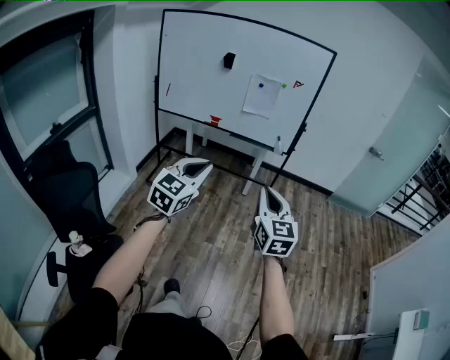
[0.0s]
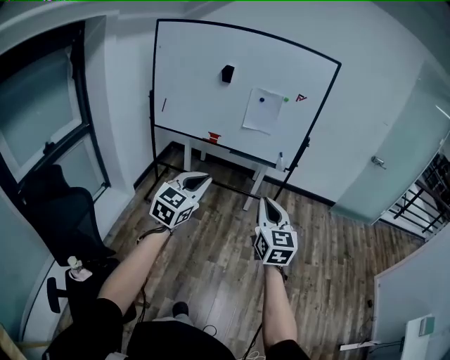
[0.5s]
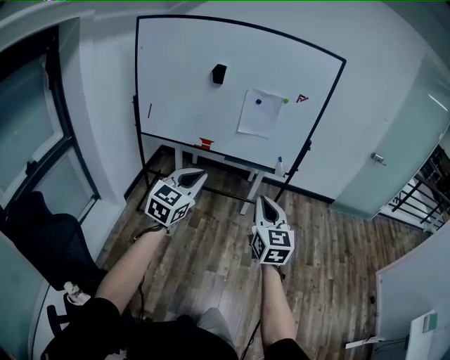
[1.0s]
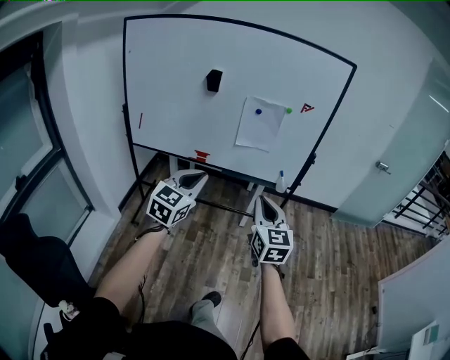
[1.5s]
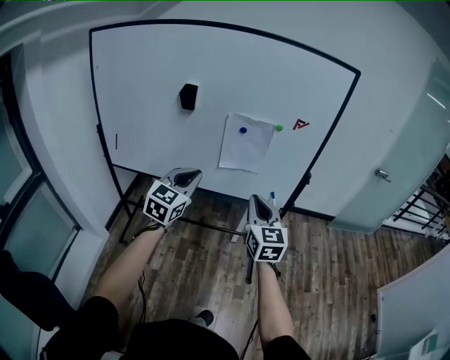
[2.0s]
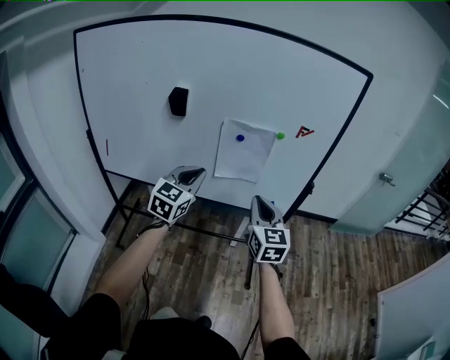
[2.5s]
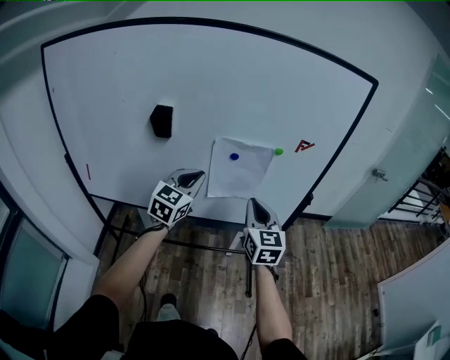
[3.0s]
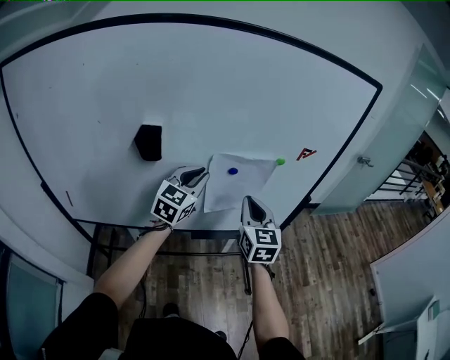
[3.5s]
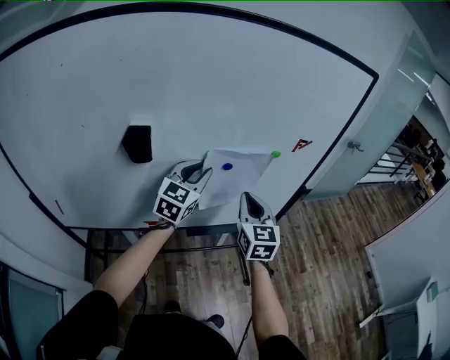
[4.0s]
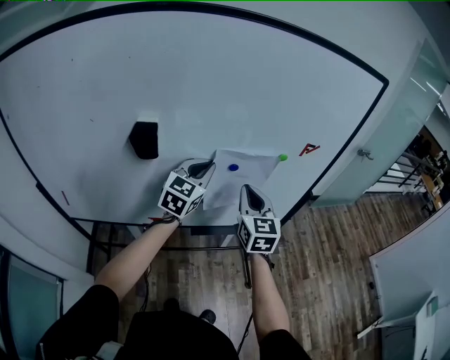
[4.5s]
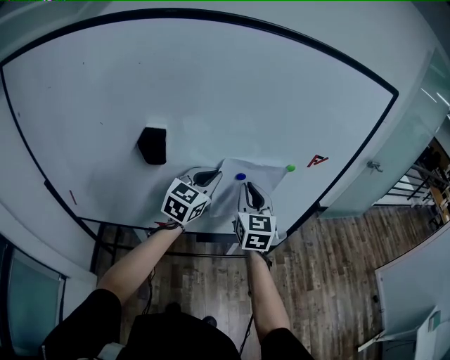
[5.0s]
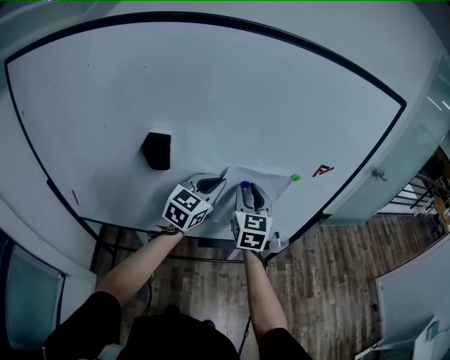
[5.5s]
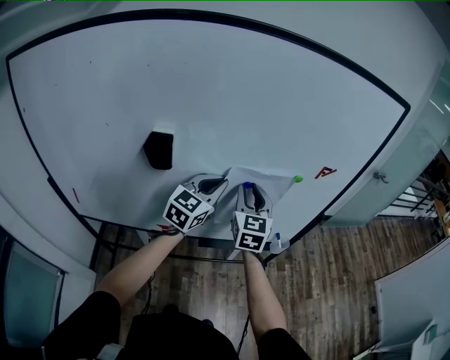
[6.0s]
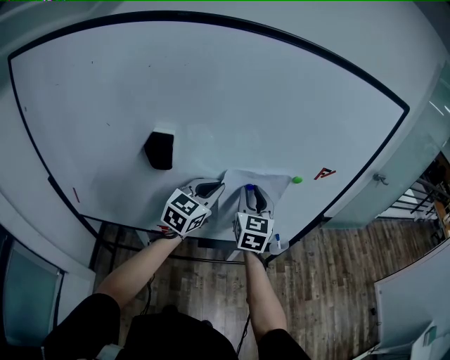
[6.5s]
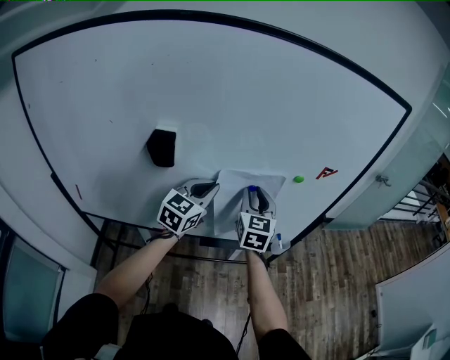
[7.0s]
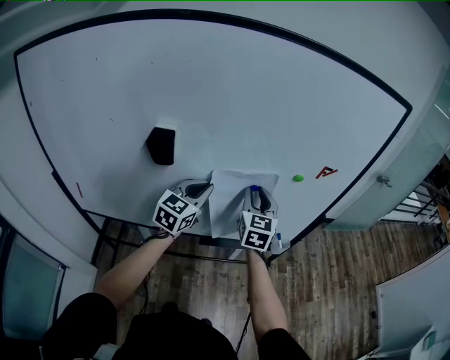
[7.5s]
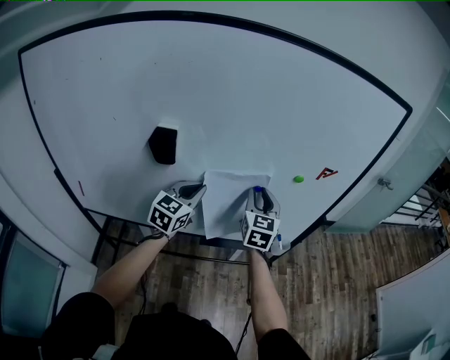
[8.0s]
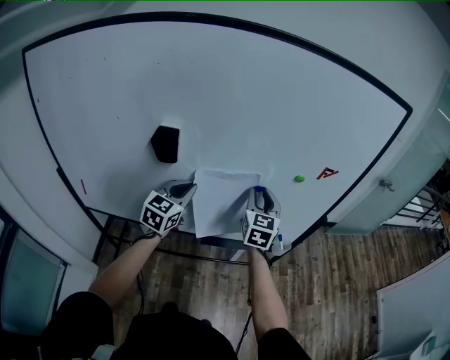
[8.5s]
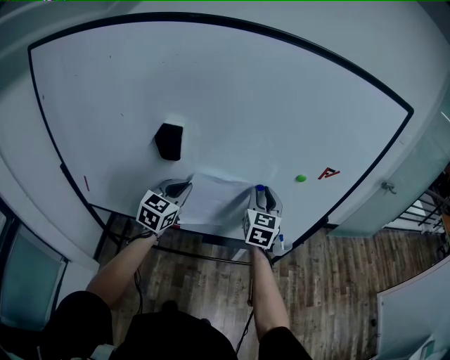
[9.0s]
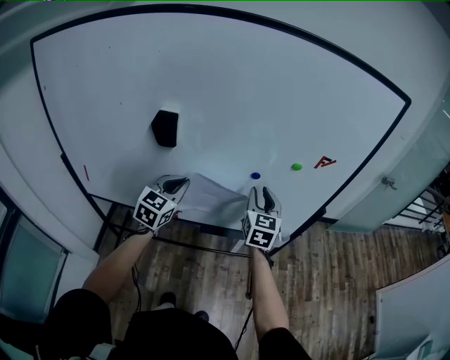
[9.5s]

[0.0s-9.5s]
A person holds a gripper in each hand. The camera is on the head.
0.0s to 2.0s: The pair of grippers is taken forward, roughly 60 cm.
2.0s to 4.0s: The grippers both shift forward by approximately 30 cm. The right gripper rotates some 20 degrees.
4.0s to 5.5s: The right gripper moves forward and to the left, roughly 10 cm, and opens up.
5.5s to 7.5s: The left gripper moves roughly 5 cm.
7.5s to 9.5s: The left gripper is displaced backward and to the left by roughly 10 cm.

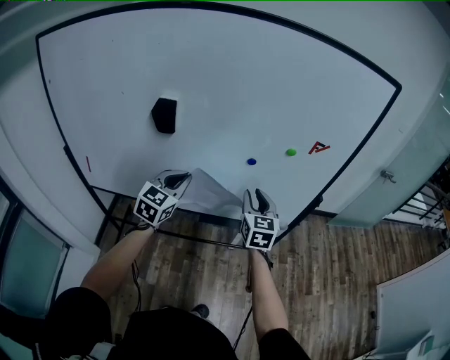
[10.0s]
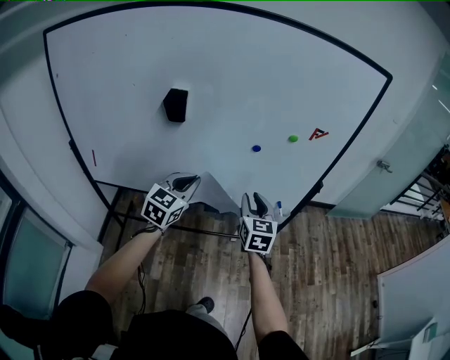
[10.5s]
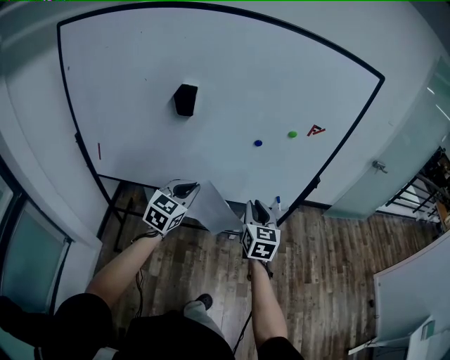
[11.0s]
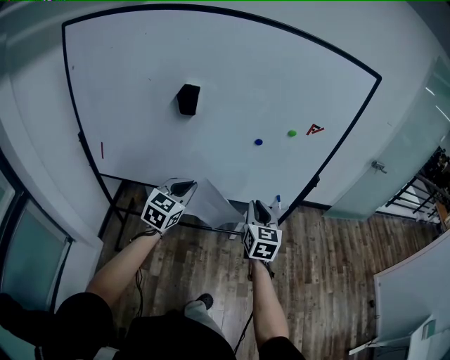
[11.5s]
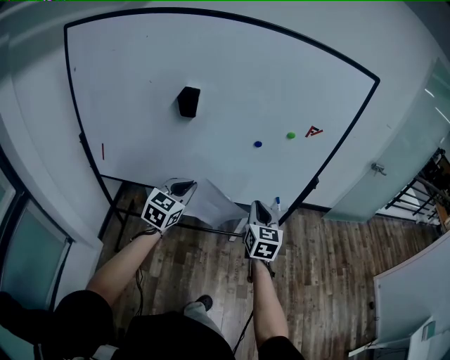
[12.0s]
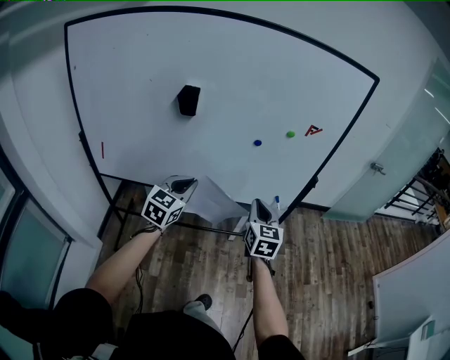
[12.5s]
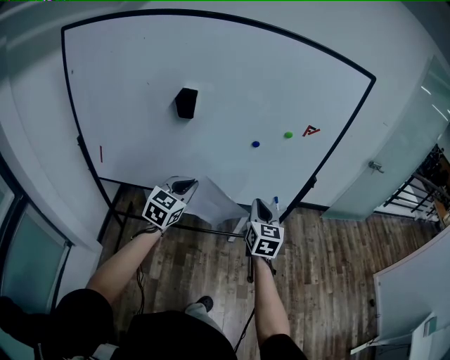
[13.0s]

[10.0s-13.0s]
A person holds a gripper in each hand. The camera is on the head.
10.0s to 11.5s: Both grippers travel together backward, roughly 15 cm.
11.5s to 13.0s: There are only small adjustments of the grippers.

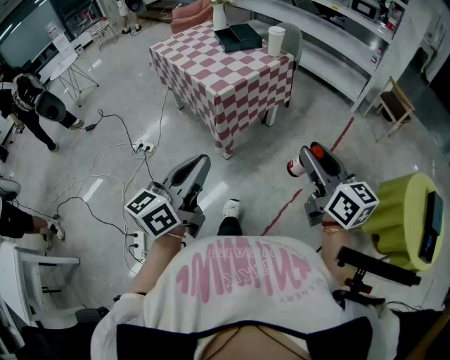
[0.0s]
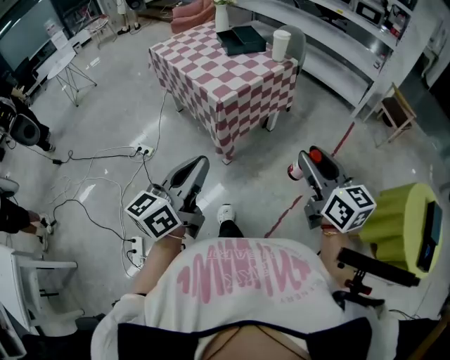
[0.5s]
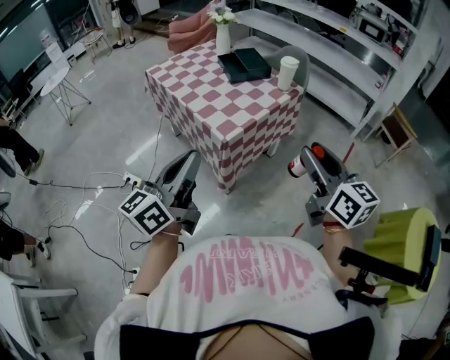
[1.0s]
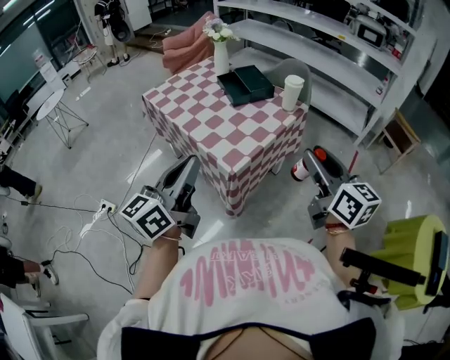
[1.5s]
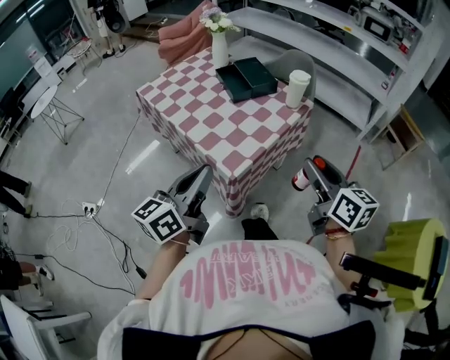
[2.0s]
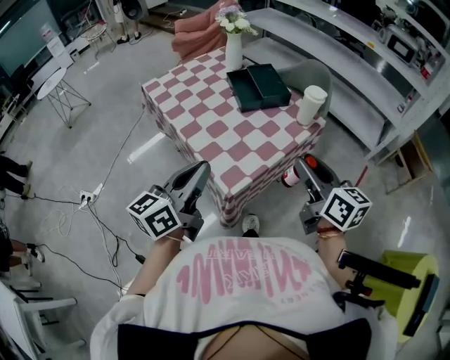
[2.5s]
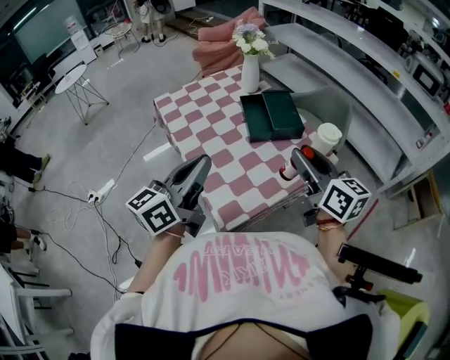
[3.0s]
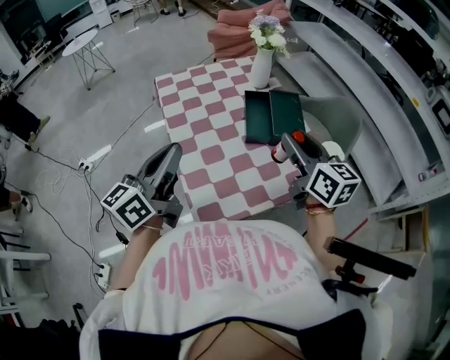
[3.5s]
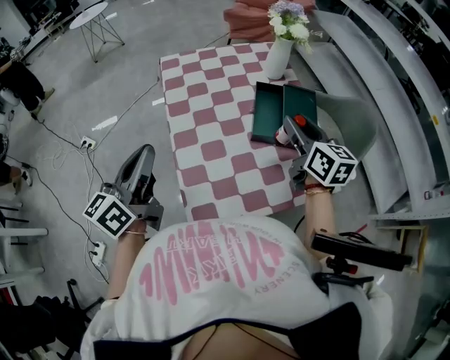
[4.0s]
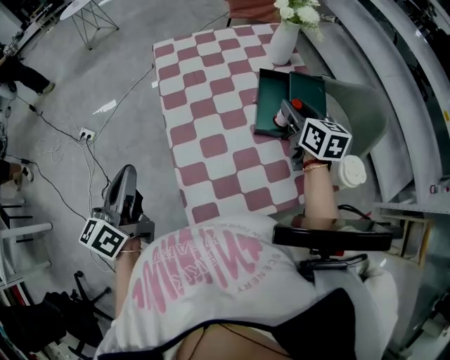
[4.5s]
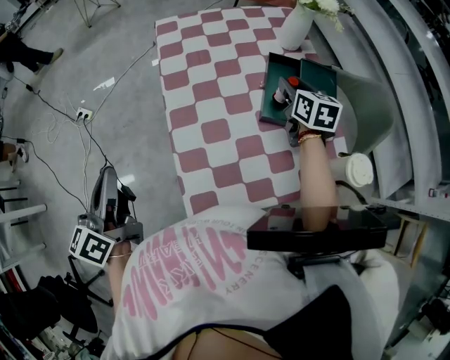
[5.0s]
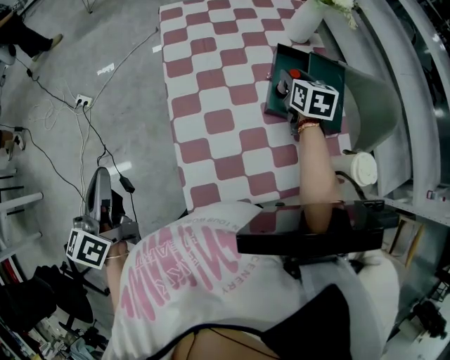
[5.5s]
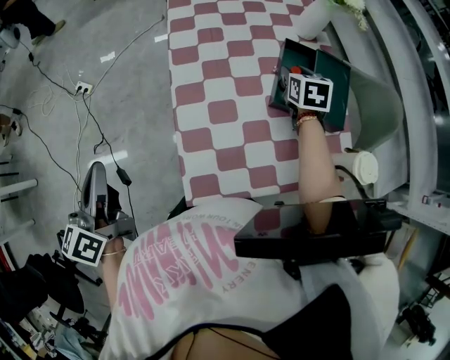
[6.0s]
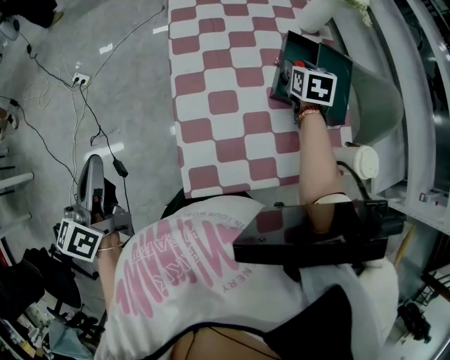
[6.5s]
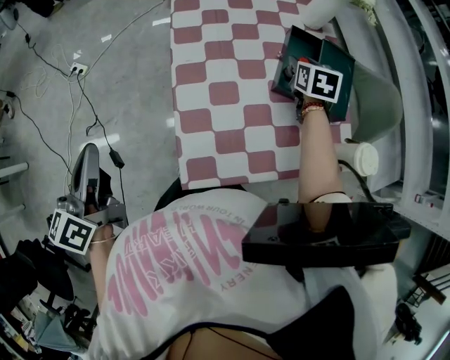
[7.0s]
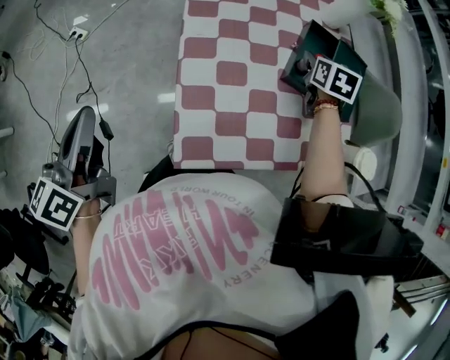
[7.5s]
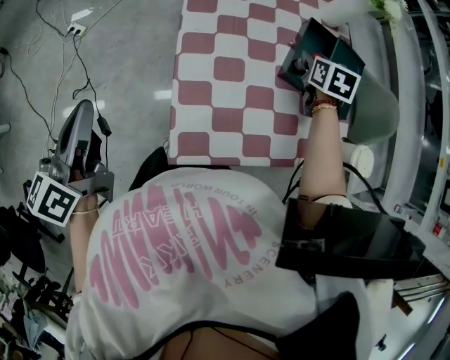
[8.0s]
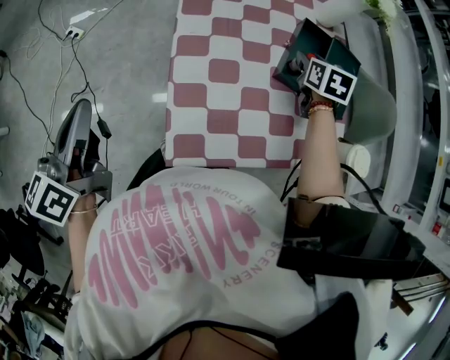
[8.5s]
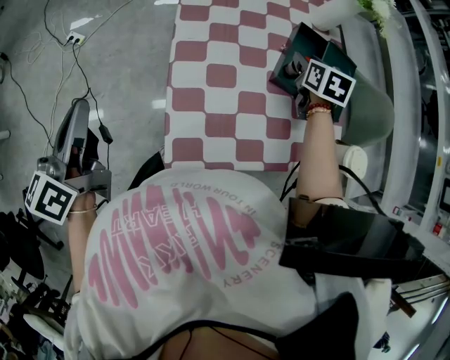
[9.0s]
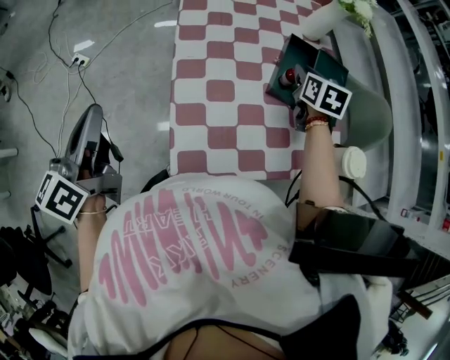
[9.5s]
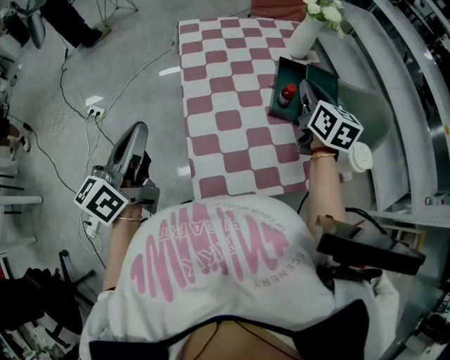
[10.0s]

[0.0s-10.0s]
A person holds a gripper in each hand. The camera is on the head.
0.0s to 2.0s: The two grippers go some 40 cm forward.
2.0s to 4.0s: The left gripper ends up about 25 cm from where it was, and turns by some 40 degrees, while the right gripper moves about 50 cm, and turns by approximately 30 degrees.
4.0s to 6.0s: The right gripper heads downward and forward, covering some 25 cm, and swivels approximately 30 degrees, while the left gripper moves to the left, downward and backward, some 15 cm, and swivels approximately 30 degrees.
6.0s to 8.0s: The grippers make only small movements.
8.0s to 10.0s: The right gripper is displaced upward and backward by roughly 15 cm, changes its angle by some 30 degrees, and closes. The left gripper is displaced to the right and upward by approximately 10 cm.

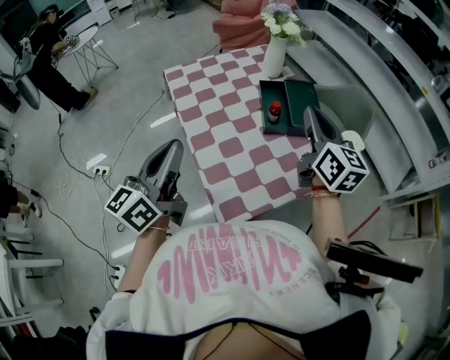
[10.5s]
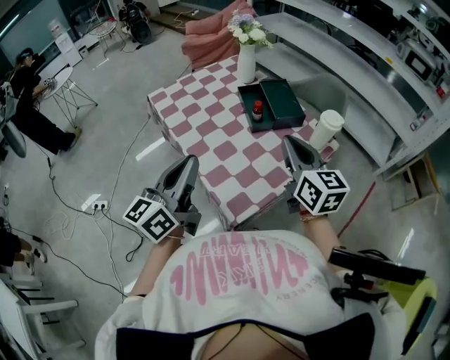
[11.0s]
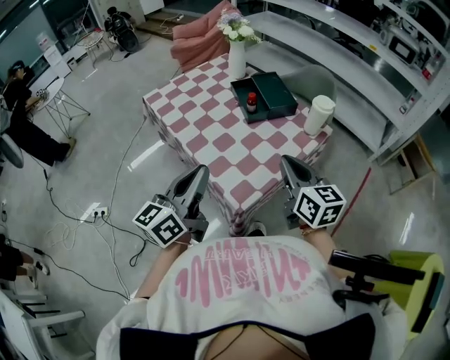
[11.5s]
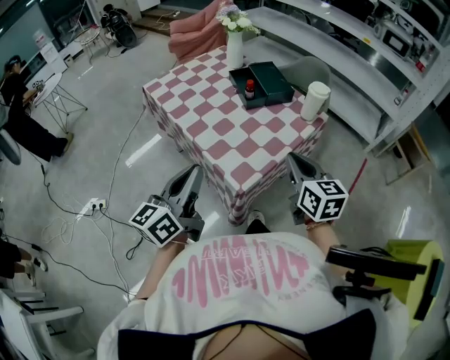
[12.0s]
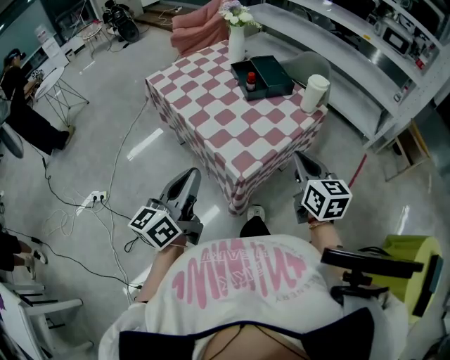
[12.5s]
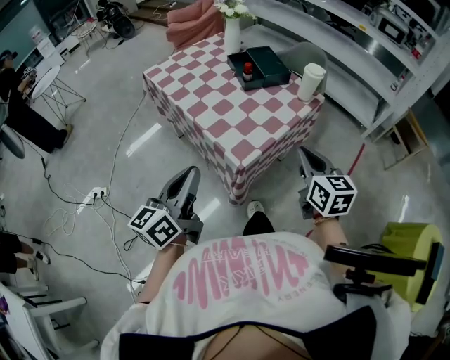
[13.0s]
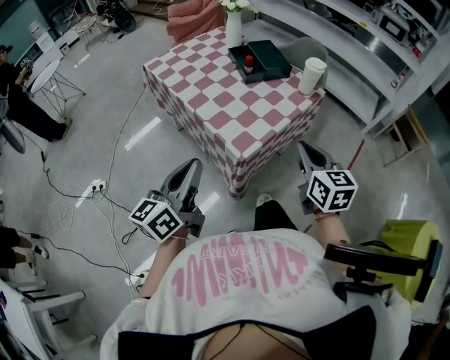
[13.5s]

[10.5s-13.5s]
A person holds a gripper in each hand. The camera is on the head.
10.5s to 12.0s: The right gripper is displaced backward by approximately 30 cm. Meanwhile the left gripper heads backward, covering some 15 cm.
12.0s to 13.5s: Both grippers travel together backward, roughly 10 cm.

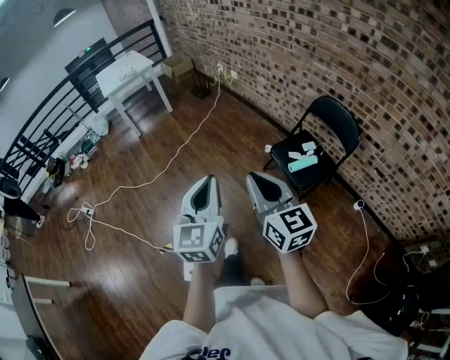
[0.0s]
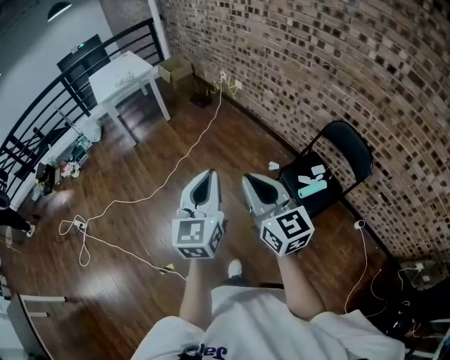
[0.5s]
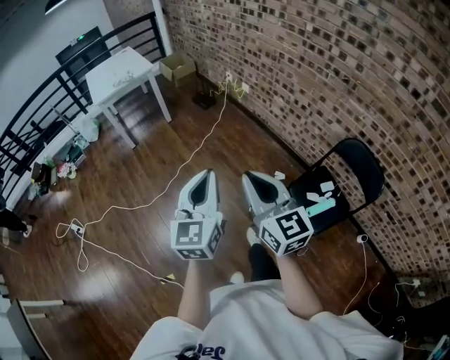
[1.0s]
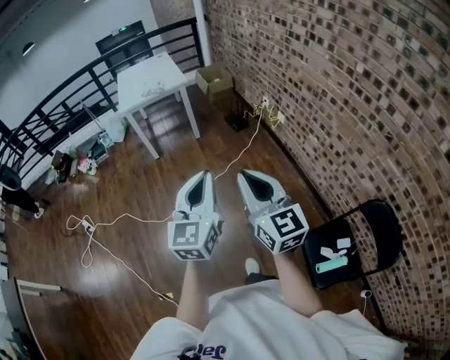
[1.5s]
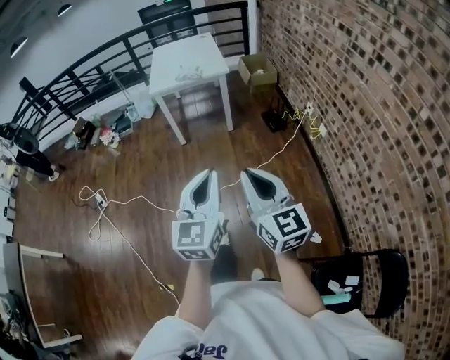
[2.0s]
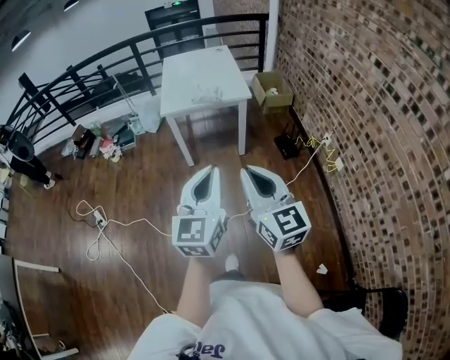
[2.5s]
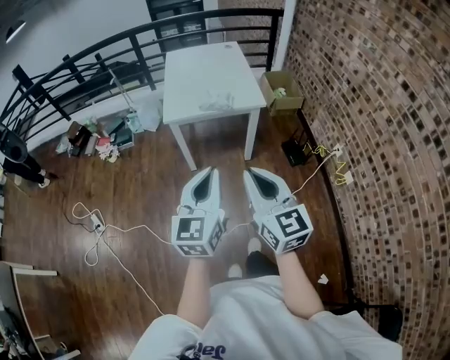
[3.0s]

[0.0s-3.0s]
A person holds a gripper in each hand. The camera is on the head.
0.0s to 1.5s: Both grippers are carried forward, roughly 60 cm.
1.5s to 3.0s: The pair of grippers is taken forward, about 60 cm.
